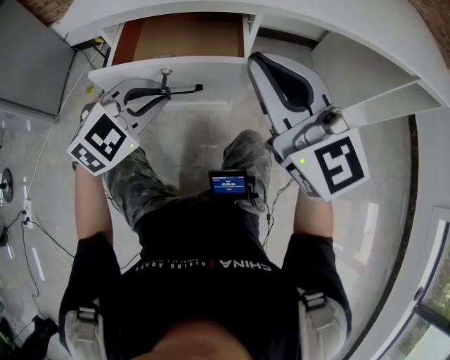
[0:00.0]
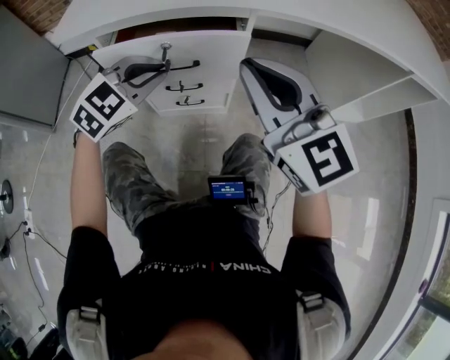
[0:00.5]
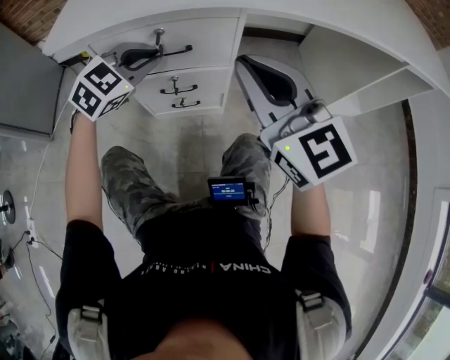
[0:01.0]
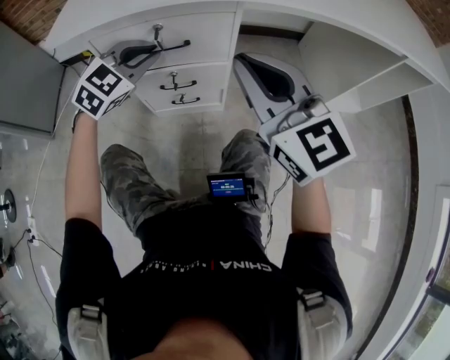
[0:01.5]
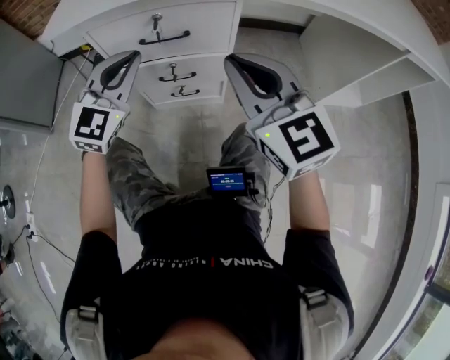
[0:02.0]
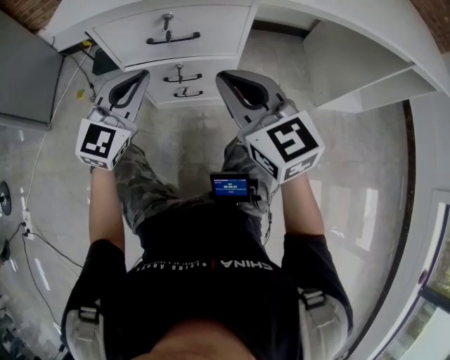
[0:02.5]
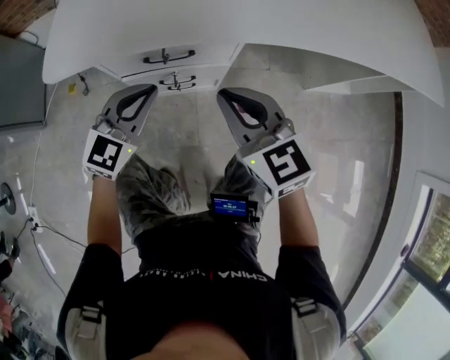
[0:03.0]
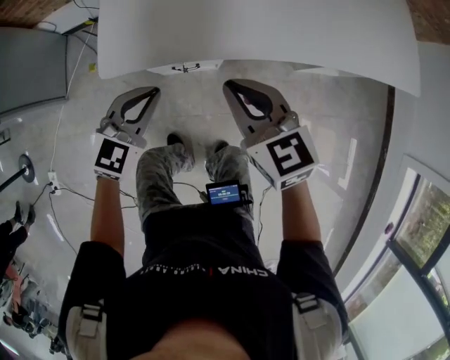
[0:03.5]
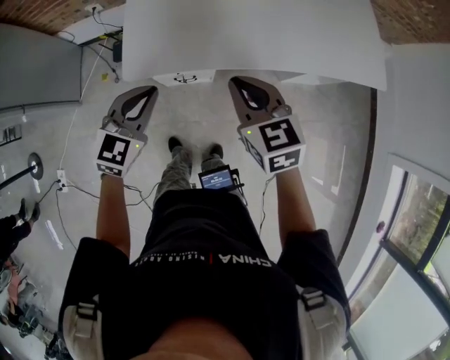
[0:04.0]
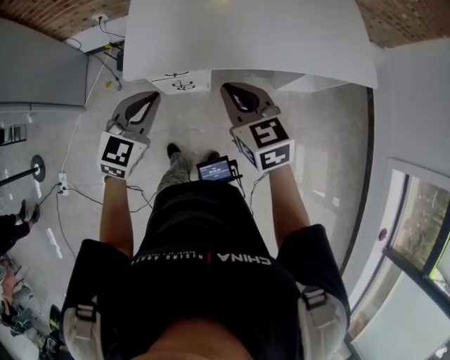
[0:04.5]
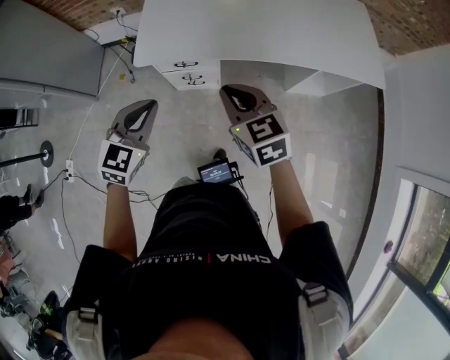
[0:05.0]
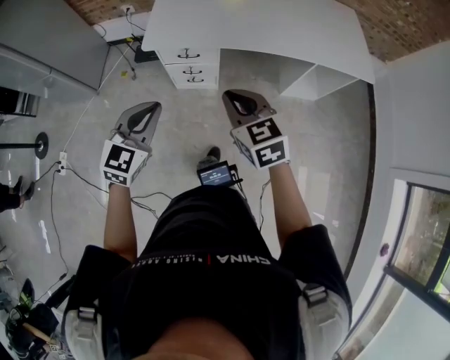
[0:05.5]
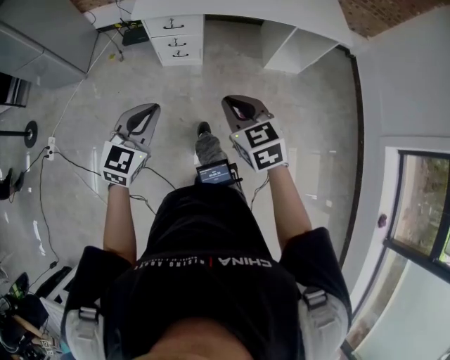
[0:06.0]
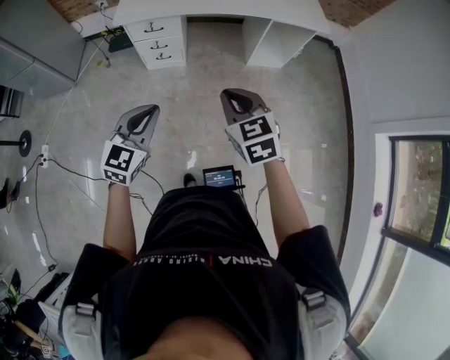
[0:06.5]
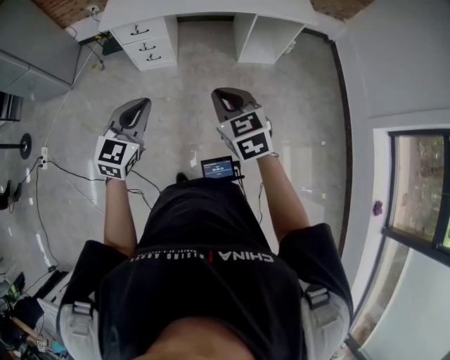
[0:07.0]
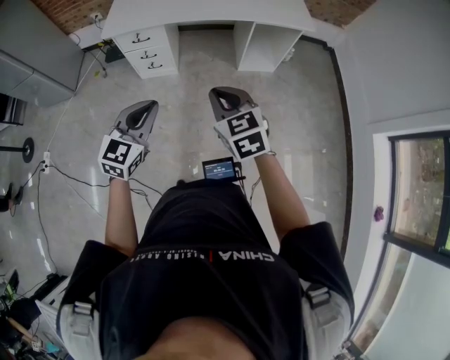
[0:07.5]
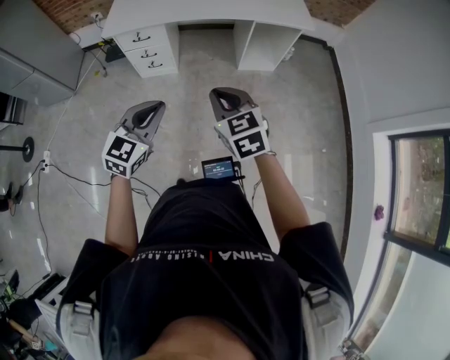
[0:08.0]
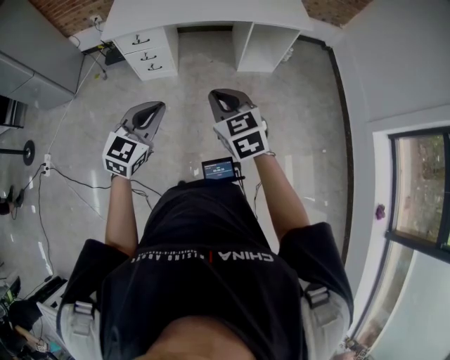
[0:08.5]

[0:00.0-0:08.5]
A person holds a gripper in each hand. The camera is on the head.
0:00.0 to 0:02.0: The right gripper goes approximately 5 cm downward; the left gripper moves forward, roughly 10 cm, and turns by about 30 degrees.
0:02.0 to 0:04.0: The grippers both shift upward by some 40 cm. The left gripper rotates roughly 30 degrees. Meanwhile the right gripper changes its angle by roughly 30 degrees.
0:04.0 to 0:06.5: The pair of grippers is taken backward, approximately 60 cm.
0:06.5 to 0:08.5: The two grippers go about 10 cm to the right.

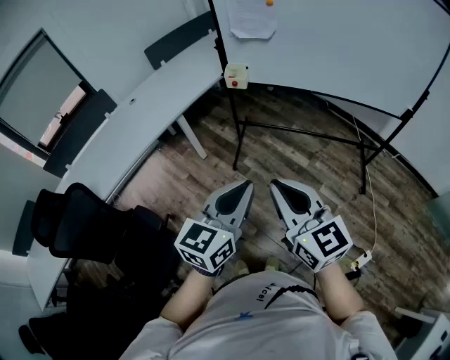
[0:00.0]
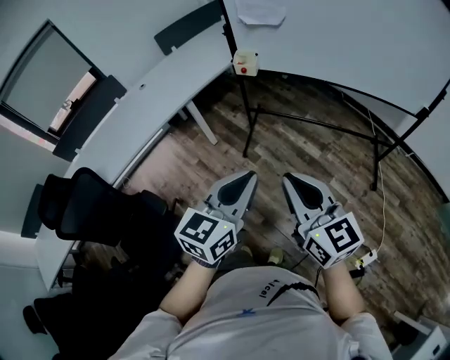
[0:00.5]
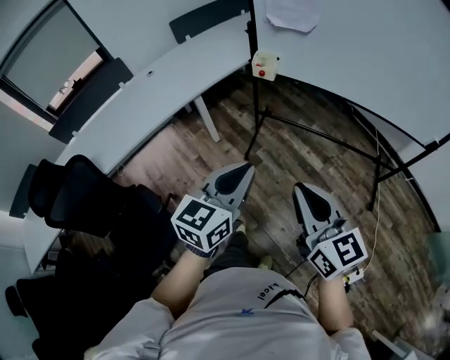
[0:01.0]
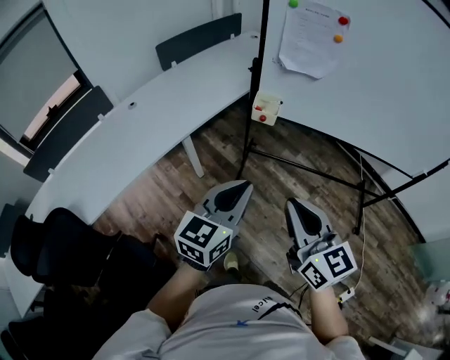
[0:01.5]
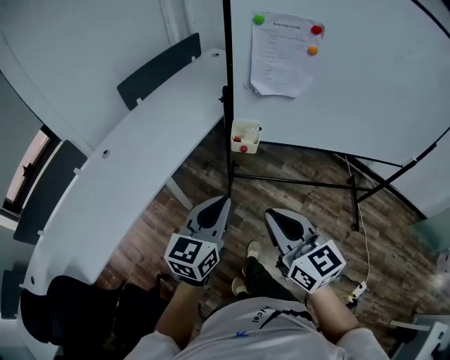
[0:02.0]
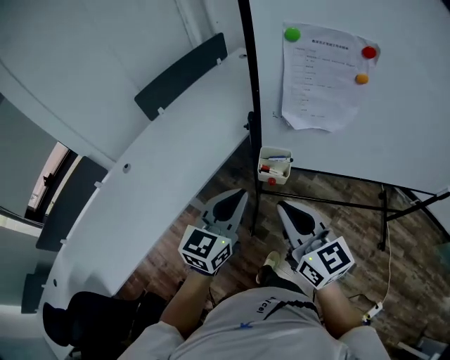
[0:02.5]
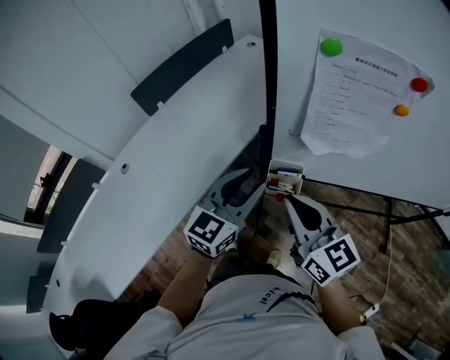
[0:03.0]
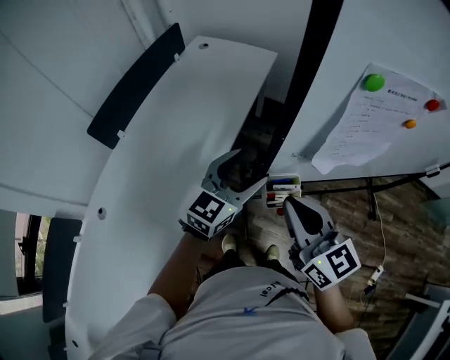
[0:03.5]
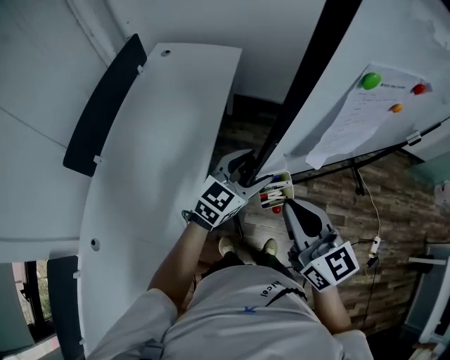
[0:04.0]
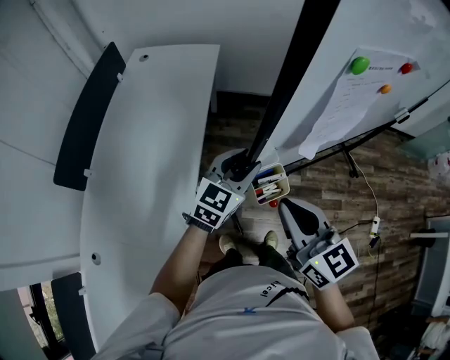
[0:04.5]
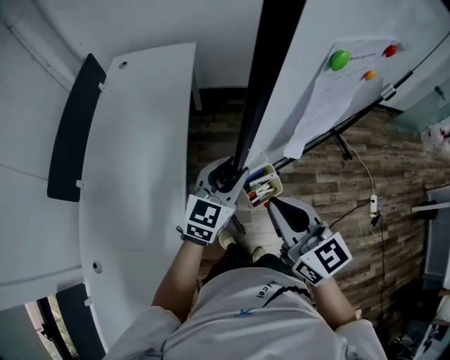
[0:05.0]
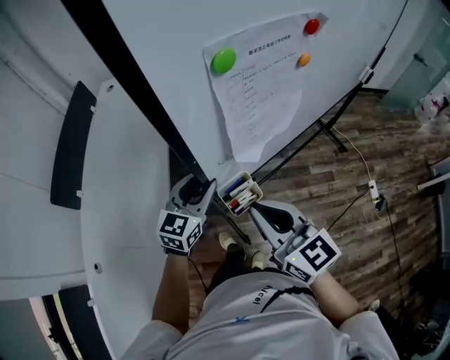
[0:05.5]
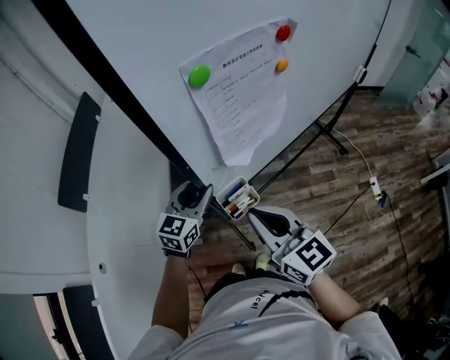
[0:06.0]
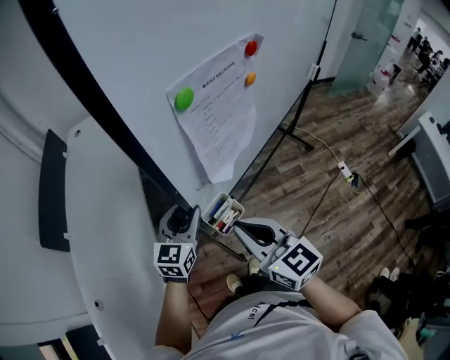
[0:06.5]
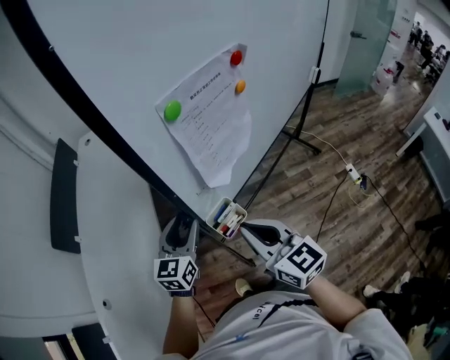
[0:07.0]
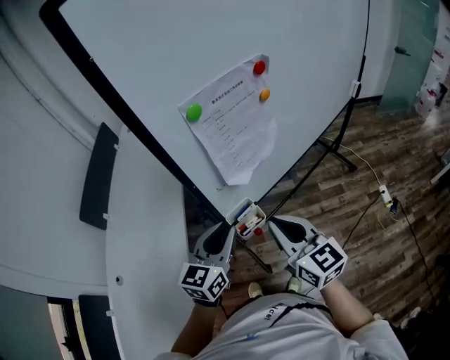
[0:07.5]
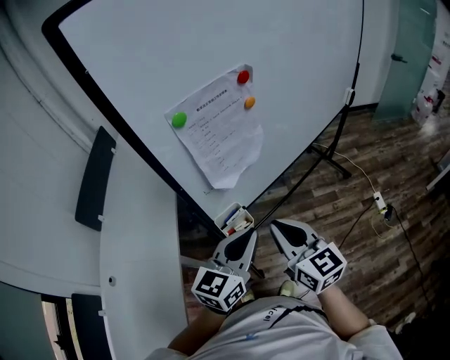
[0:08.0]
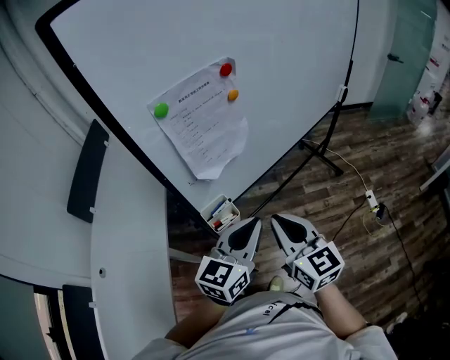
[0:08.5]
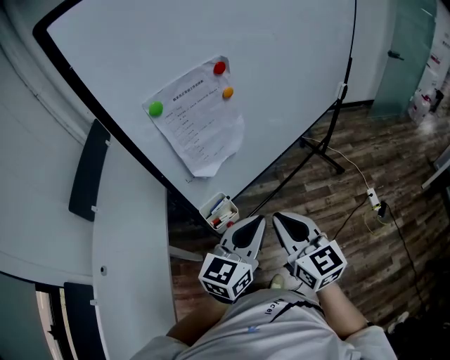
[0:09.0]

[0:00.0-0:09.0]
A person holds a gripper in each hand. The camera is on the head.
0:00.0 to 0:02.0: The right gripper shifts roughly 30 cm forward, while the left gripper is displaced forward and to the left by roughly 40 cm.
0:02.0 to 0:04.5: The right gripper changes place by roughly 35 cm, and turns by roughly 30 degrees; the left gripper changes place by roughly 40 cm, swivels approximately 40 degrees, and opens up.
0:04.5 to 0:07.0: The right gripper shifts some 5 cm to the right.
0:07.0 to 0:09.0: The left gripper moves to the right and backward, some 30 cm, and closes. Meanwhile the right gripper is displaced to the right by roughly 15 cm.

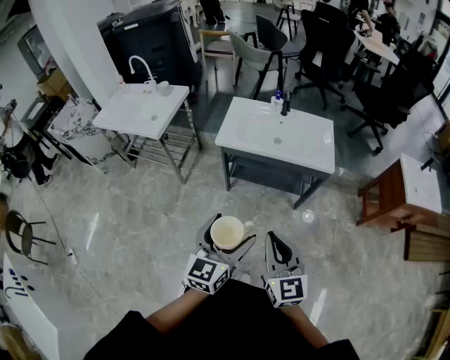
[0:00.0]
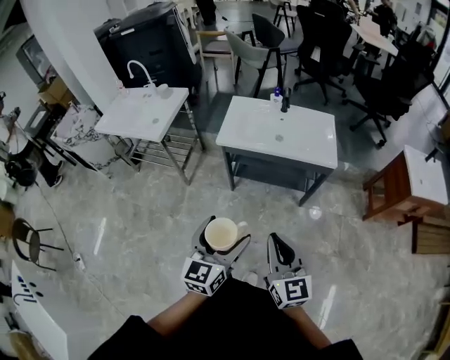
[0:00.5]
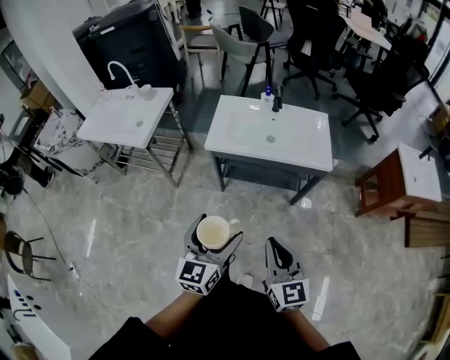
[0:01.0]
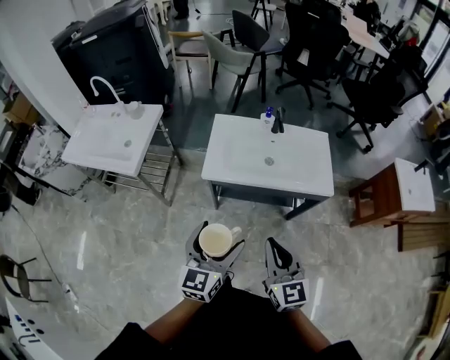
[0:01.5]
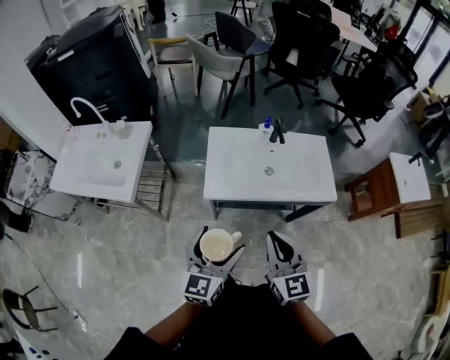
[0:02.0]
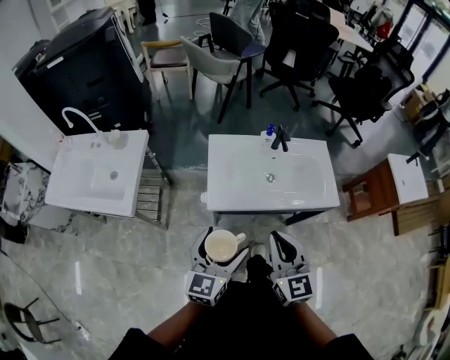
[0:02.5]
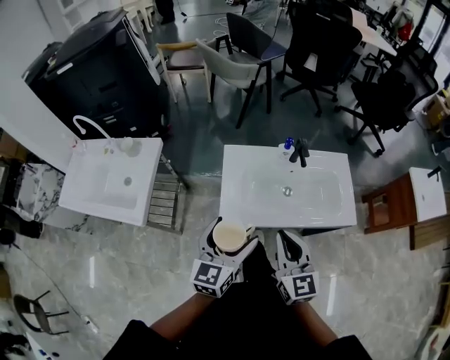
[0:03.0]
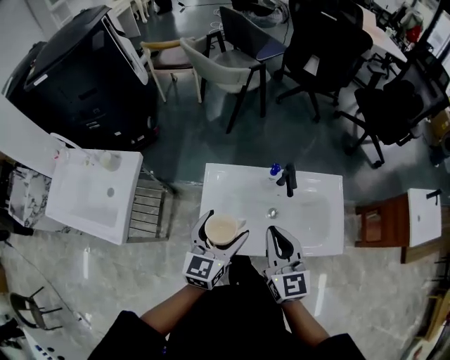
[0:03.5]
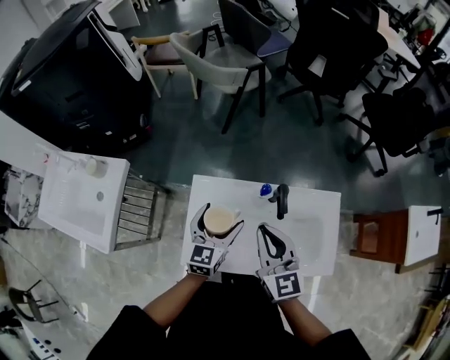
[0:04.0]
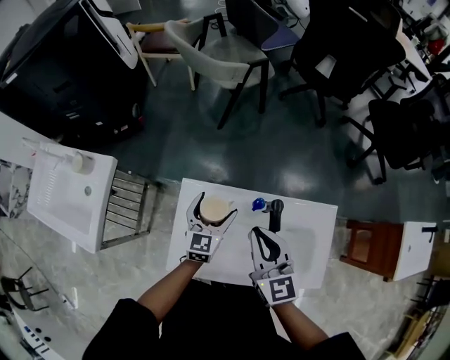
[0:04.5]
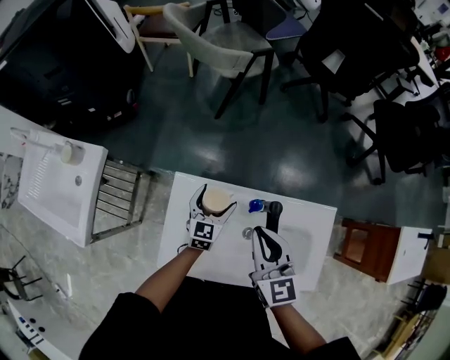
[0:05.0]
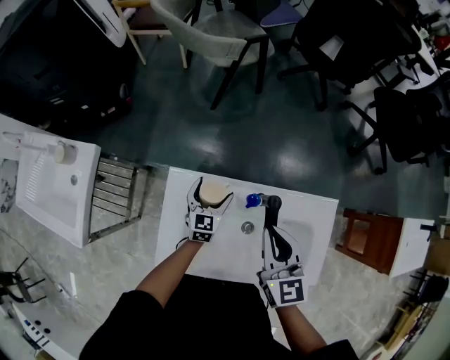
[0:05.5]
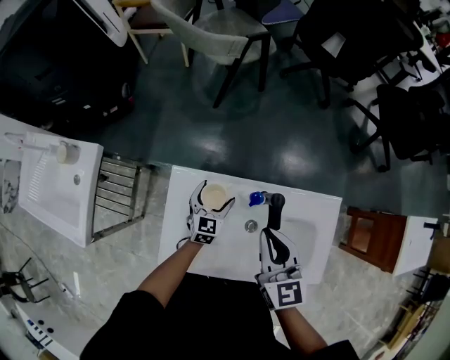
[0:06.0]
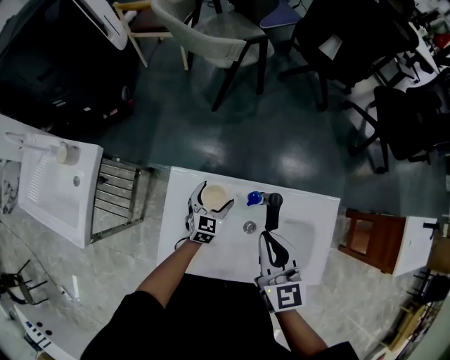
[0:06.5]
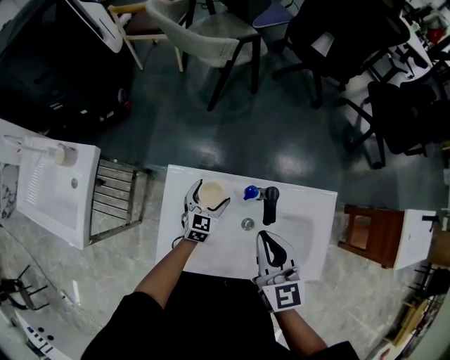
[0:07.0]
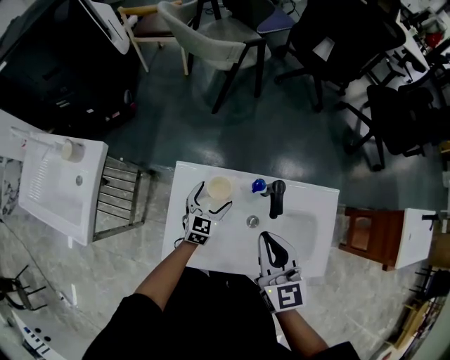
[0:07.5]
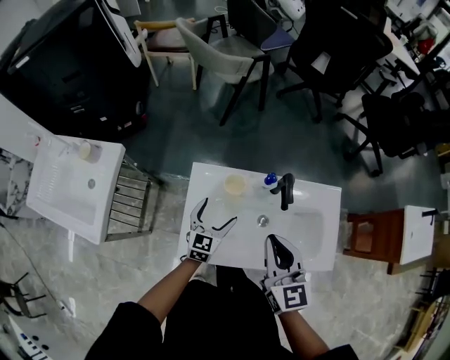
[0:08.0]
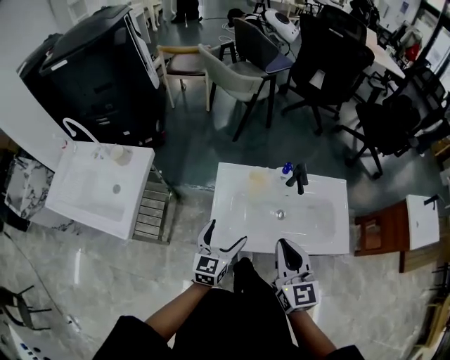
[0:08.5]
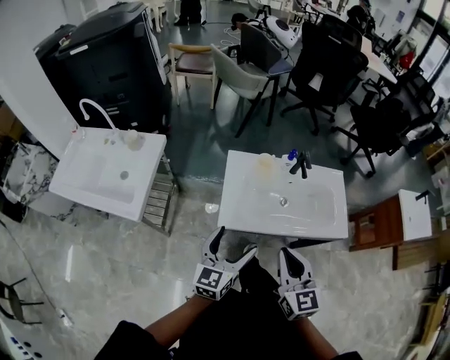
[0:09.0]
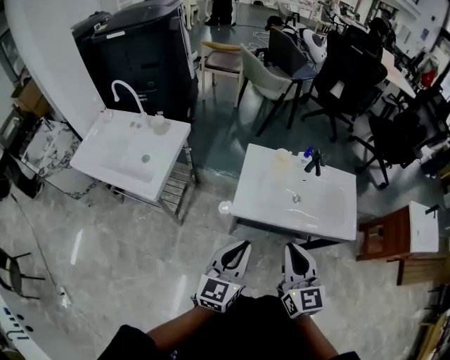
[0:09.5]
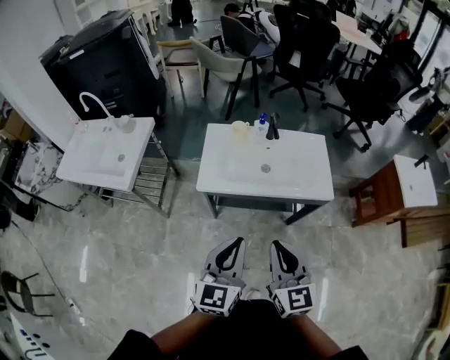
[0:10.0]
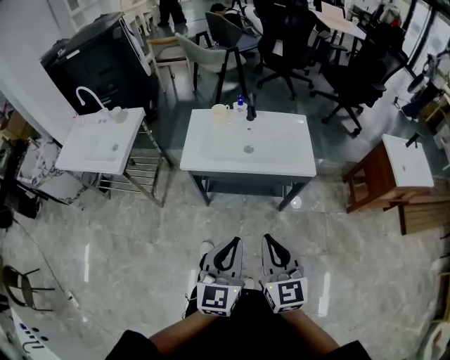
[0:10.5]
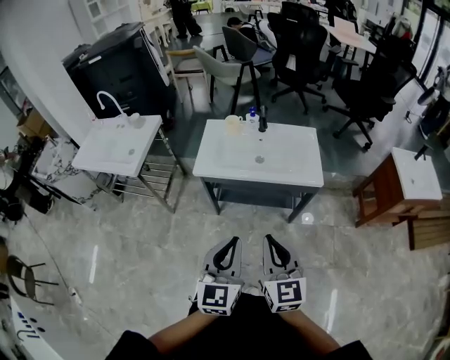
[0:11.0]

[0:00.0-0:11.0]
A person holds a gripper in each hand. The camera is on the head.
0:00.0 to 0:02.0: The right gripper moves forward, approximately 30 cm; the left gripper shifts about 35 cm forward and to the left.
0:02.0 to 0:03.5: Both grippers travel together forward, some 35 cm.
0:03.5 to 0:05.5: The right gripper shifts roughly 25 cm forward, to the right and downward; the left gripper goes roughly 35 cm downward and forward.
0:05.5 to 0:07.5: The two grippers go some 5 cm backward.
0:07.5 to 0:09.0: The right gripper is displaced backward by some 35 cm, while the left gripper moves backward and upward, some 50 cm, and rotates roughly 20 degrees.
0:09.0 to 0:11.0: The grippers both shift backward and to the right by roughly 40 cm. The left gripper closes.
